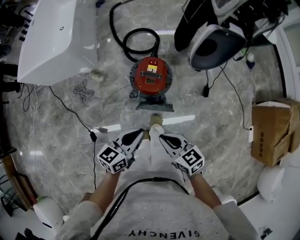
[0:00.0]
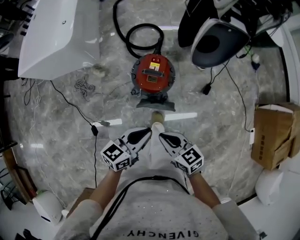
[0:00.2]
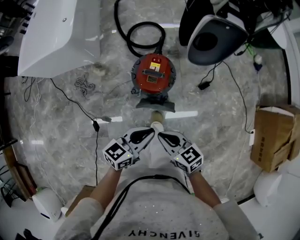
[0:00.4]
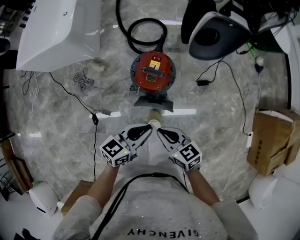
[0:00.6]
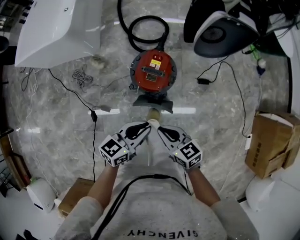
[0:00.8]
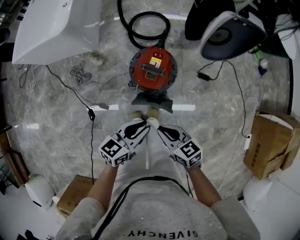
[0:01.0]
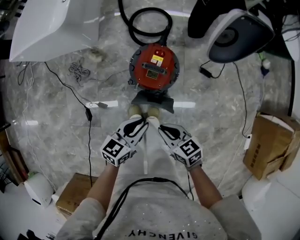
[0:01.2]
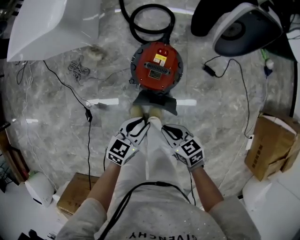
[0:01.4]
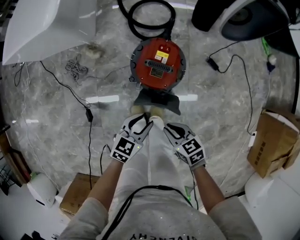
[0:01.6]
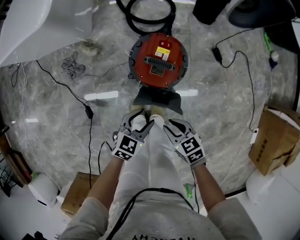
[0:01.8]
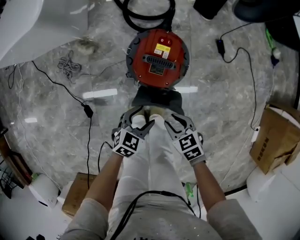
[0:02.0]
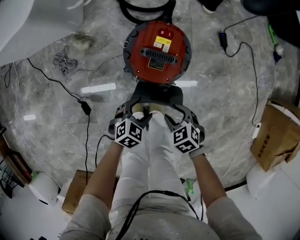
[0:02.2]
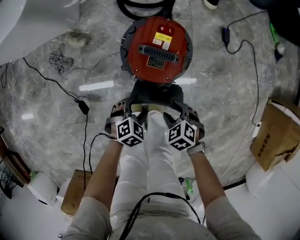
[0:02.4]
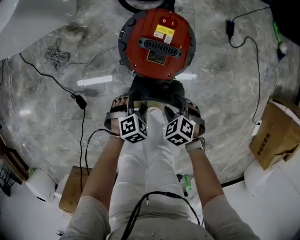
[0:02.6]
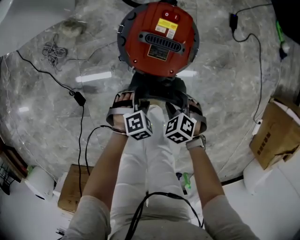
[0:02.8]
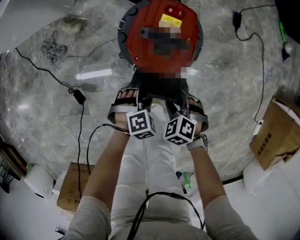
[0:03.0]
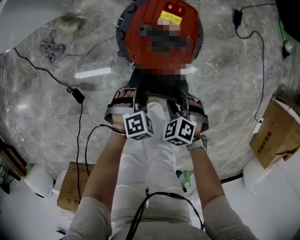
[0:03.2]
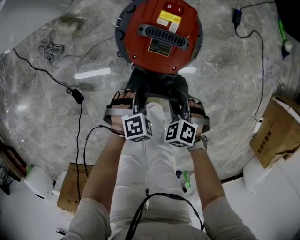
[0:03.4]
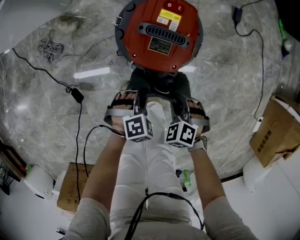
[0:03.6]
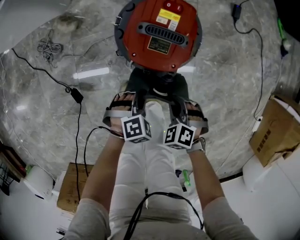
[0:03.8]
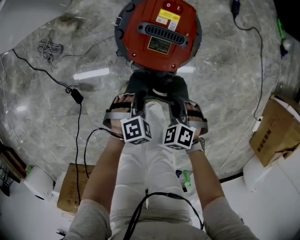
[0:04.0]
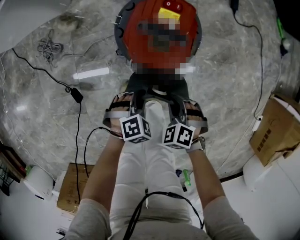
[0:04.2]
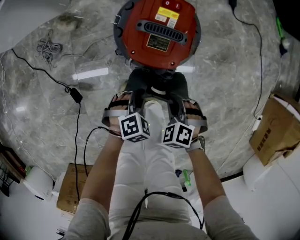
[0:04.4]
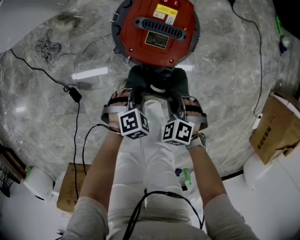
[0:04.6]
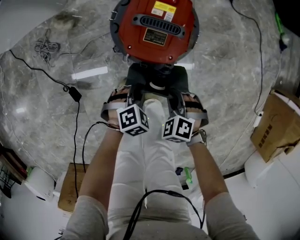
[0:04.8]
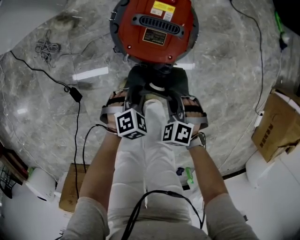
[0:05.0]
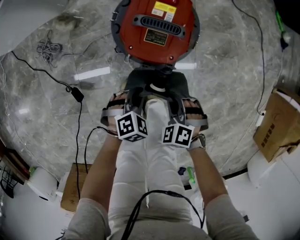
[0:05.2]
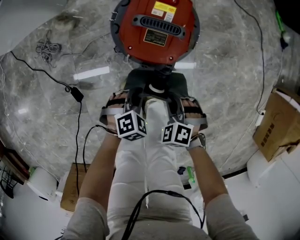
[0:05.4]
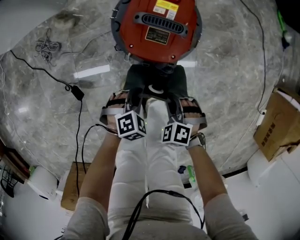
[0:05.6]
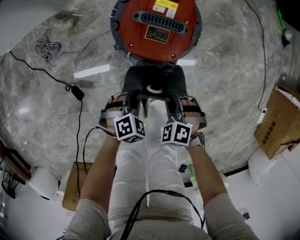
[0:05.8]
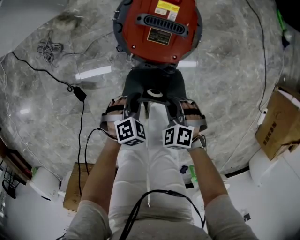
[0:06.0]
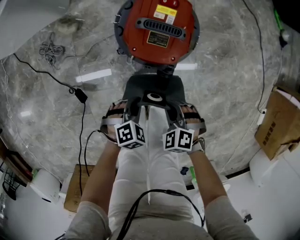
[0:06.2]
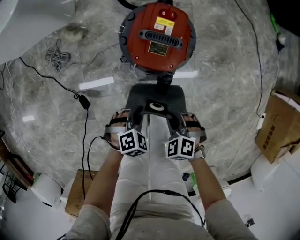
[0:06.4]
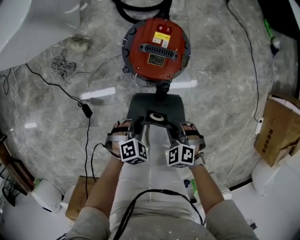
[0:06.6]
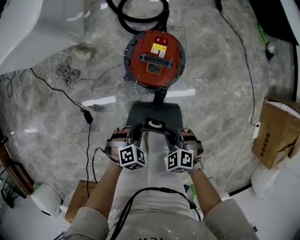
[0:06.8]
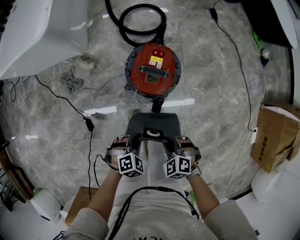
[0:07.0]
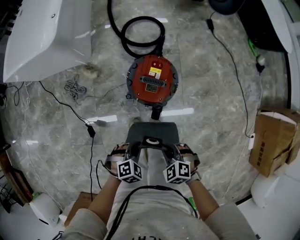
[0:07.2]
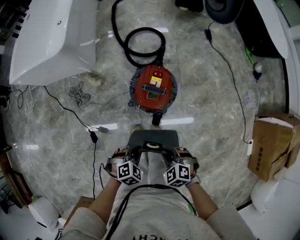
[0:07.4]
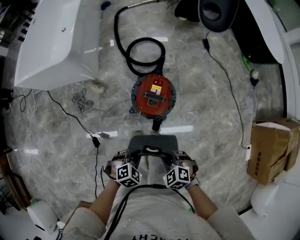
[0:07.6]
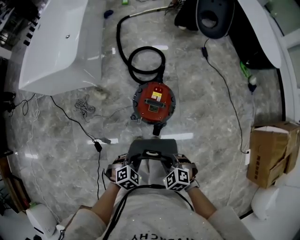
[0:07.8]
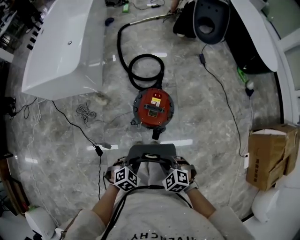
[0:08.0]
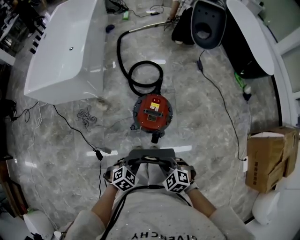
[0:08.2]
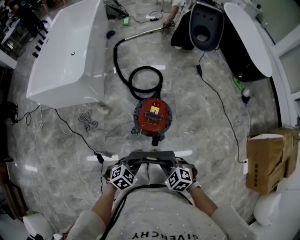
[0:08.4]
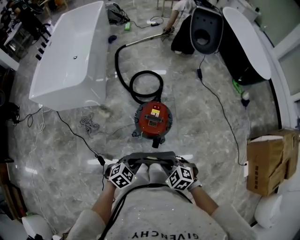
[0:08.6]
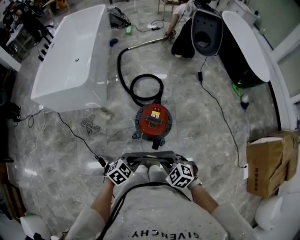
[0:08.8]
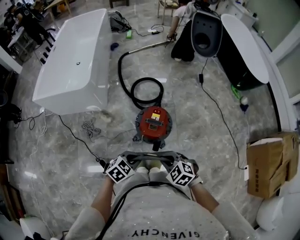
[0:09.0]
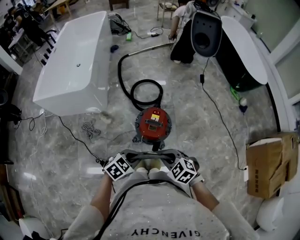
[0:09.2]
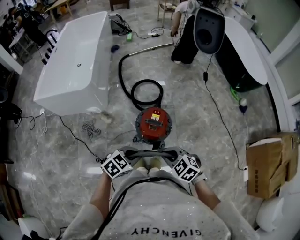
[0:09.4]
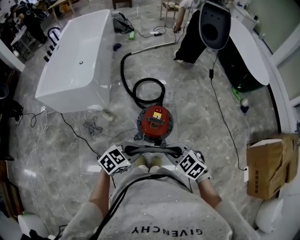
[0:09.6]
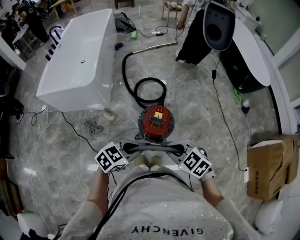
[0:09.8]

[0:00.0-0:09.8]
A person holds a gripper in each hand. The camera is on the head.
0:00.0 to 0:01.4: Both grippers travel together downward and forward, some 15 cm.
0:01.4 to 0:02.8: Both grippers travel together downward, approximately 25 cm. The right gripper angles its fingers downward, by approximately 40 degrees, and opens its fingers. Meanwhile the left gripper tilts its fingers approximately 40 degrees downward, and opens its fingers.
0:02.8 to 0:04.2: The right gripper closes. The left gripper closes up.
0:04.2 to 0:05.6: The grippers move only a little.
0:05.6 to 0:07.0: Both grippers travel together upward, roughly 15 cm.
0:07.0 to 0:08.4: The grippers both shift upward by roughly 15 cm.
0:08.4 to 0:09.8: Both grippers move upward, roughly 15 cm. The left gripper swivels some 20 degrees.

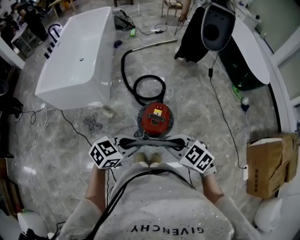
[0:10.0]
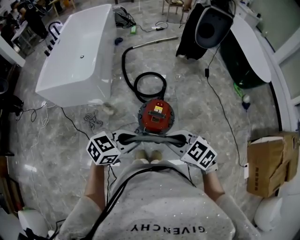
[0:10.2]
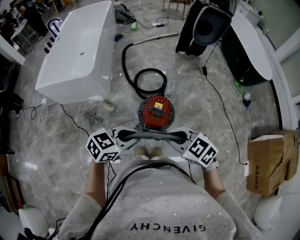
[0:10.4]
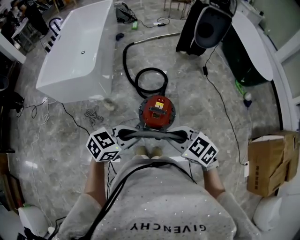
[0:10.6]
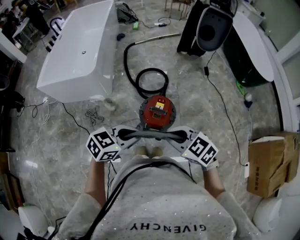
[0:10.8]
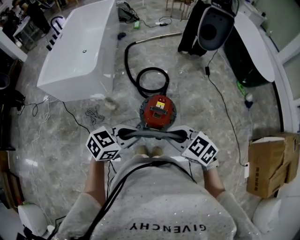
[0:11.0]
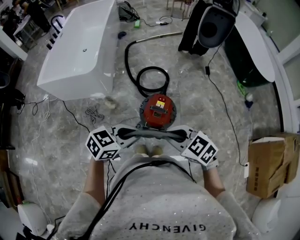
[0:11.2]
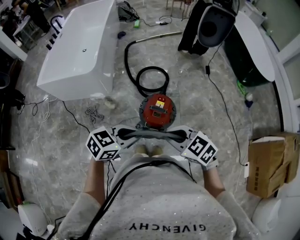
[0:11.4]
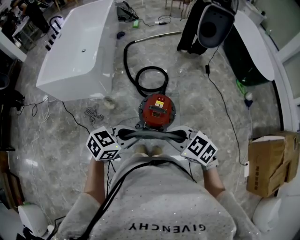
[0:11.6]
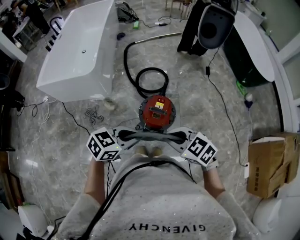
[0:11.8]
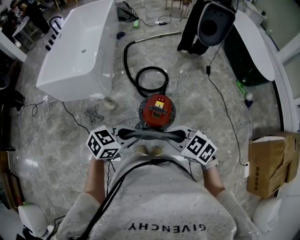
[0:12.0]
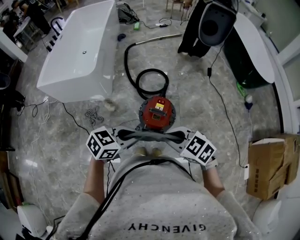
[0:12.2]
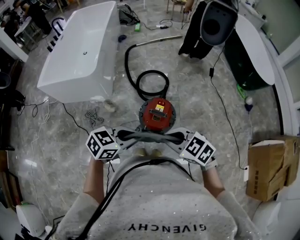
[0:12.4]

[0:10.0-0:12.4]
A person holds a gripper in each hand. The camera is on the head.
0:10.0 to 0:12.4: The grippers make only small movements.

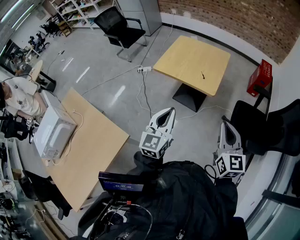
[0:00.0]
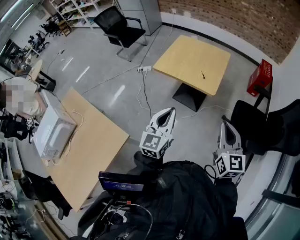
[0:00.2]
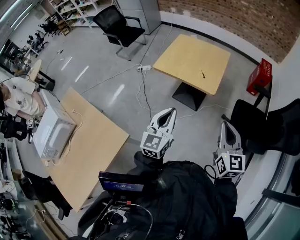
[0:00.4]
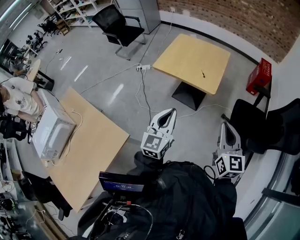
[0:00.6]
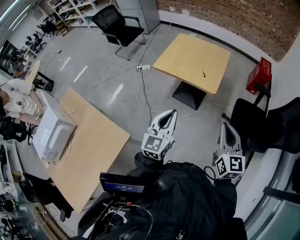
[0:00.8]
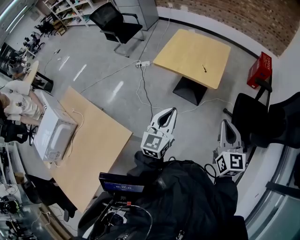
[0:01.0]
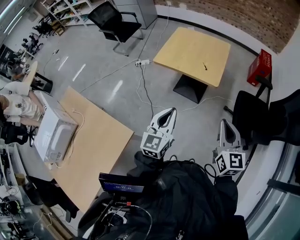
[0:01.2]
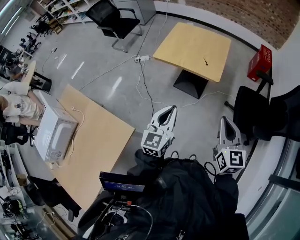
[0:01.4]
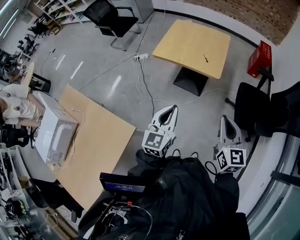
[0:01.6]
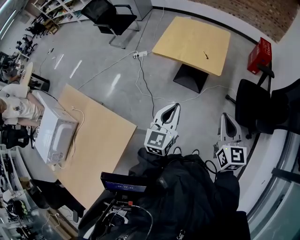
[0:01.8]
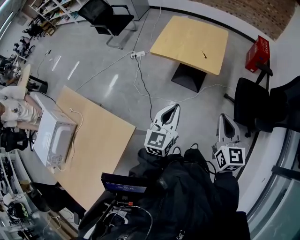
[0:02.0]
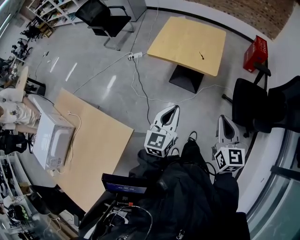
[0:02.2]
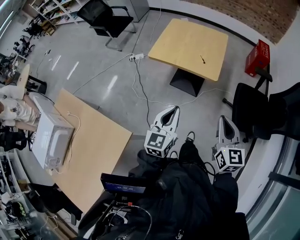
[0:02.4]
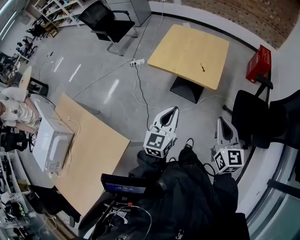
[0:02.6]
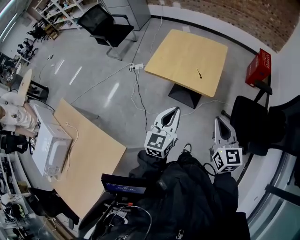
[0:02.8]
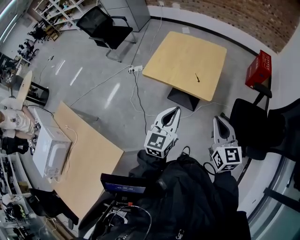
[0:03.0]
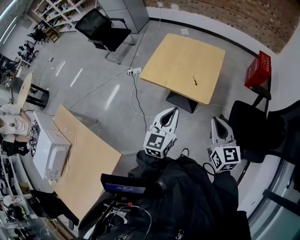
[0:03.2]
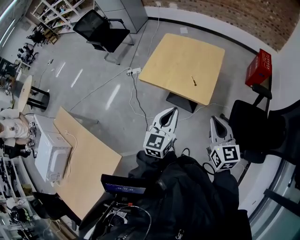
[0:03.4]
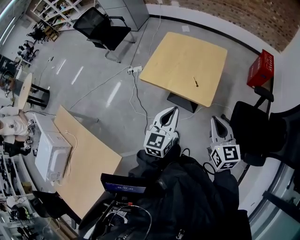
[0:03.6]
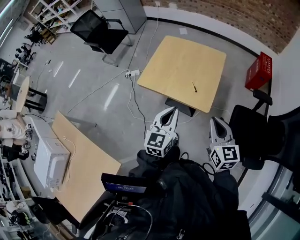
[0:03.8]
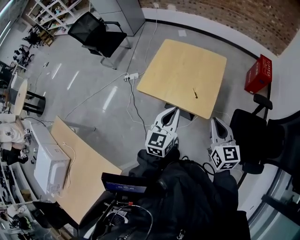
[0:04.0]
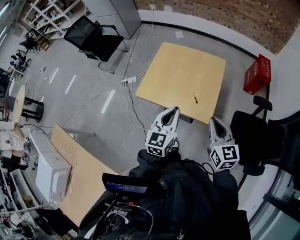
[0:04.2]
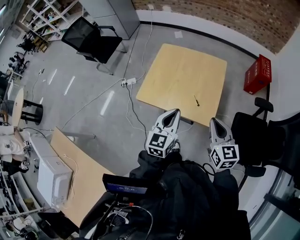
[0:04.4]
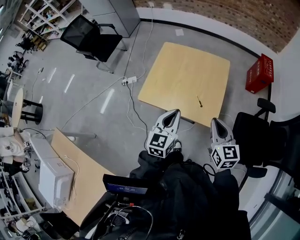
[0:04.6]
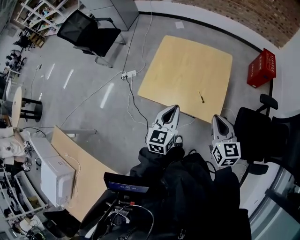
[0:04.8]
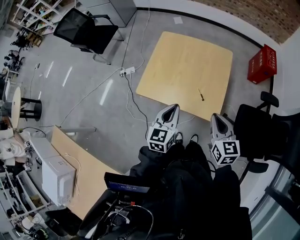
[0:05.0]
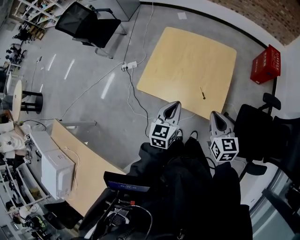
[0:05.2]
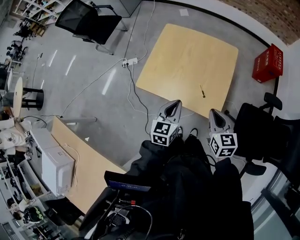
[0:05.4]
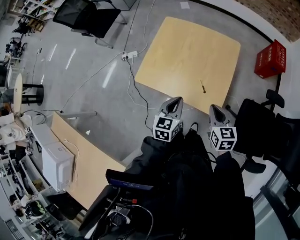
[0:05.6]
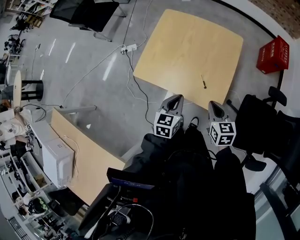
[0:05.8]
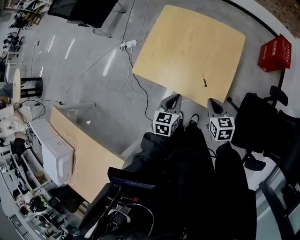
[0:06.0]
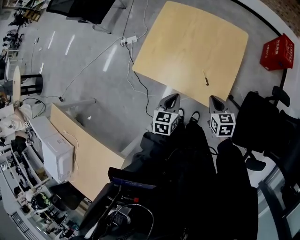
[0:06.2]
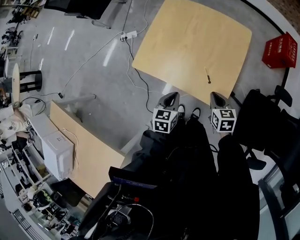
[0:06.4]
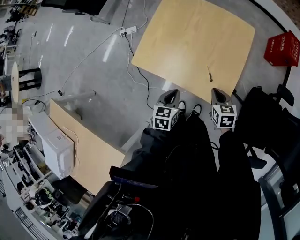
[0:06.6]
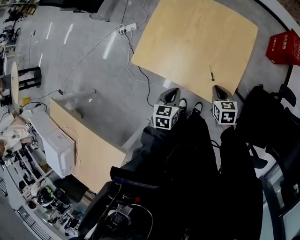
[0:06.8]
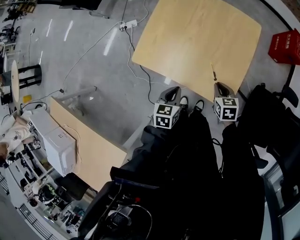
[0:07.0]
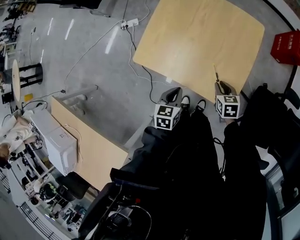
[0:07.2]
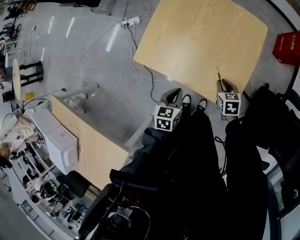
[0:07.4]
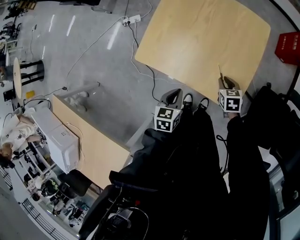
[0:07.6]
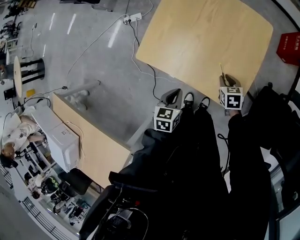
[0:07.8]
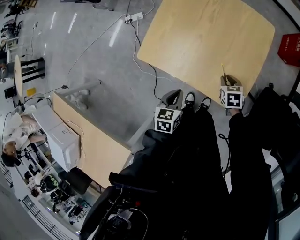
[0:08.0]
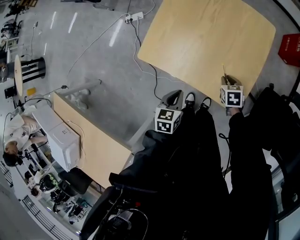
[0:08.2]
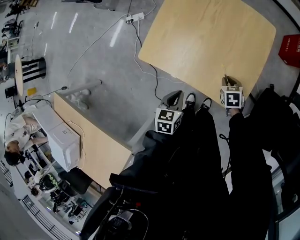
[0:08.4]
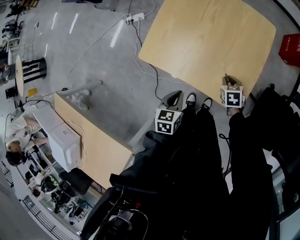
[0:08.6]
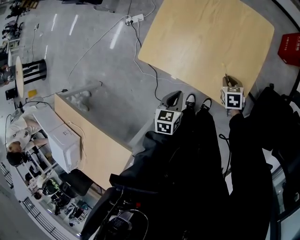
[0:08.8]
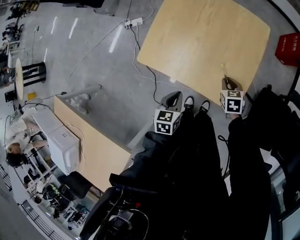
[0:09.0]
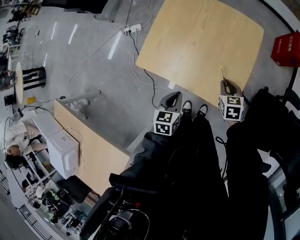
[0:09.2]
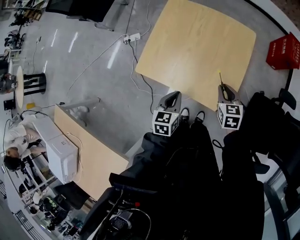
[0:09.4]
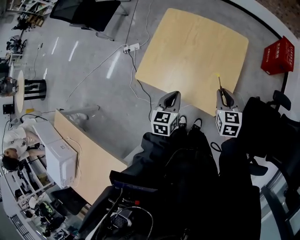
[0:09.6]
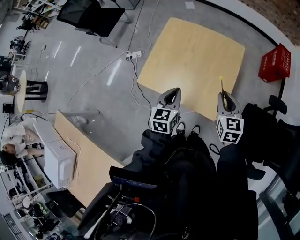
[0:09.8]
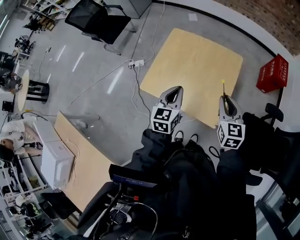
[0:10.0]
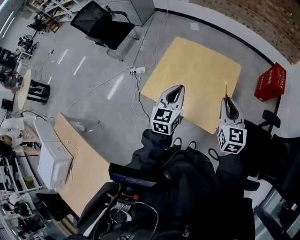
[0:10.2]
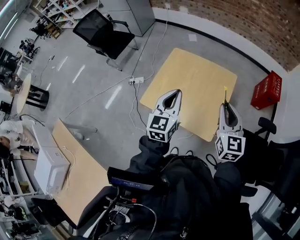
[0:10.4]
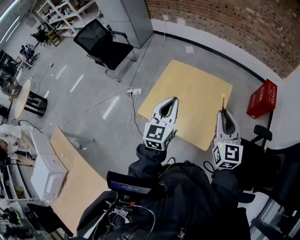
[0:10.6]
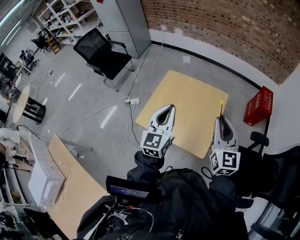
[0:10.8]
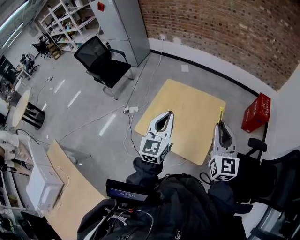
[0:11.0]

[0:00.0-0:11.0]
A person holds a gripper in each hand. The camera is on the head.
0:00.0 to 0:01.6: The right gripper travels to the left by about 5 cm. Meanwhile the left gripper shifts by some 5 cm.
0:01.6 to 0:03.2: The right gripper moves forward, approximately 20 cm. Meanwhile the left gripper shifts about 20 cm forward and to the right.
0:03.2 to 0:04.8: Both grippers travel together forward, roughly 20 cm.
0:04.8 to 0:06.2: The grippers both shift downward by approximately 20 cm. The right gripper rotates about 30 degrees. Meanwhile the left gripper turns by some 20 degrees.
0:06.2 to 0:07.8: The left gripper goes approximately 5 cm downward, while the right gripper moves downward and forward, roughly 15 cm.
0:07.8 to 0:09.4: The left gripper goes some 5 cm upward, while the right gripper heads upward, covering approximately 15 cm.
0:09.4 to 0:11.0: Both grippers travel together upward, about 35 cm. The left gripper angles its fingers upward, by some 40 degrees, while the right gripper angles its fingers upward, by about 40 degrees.
